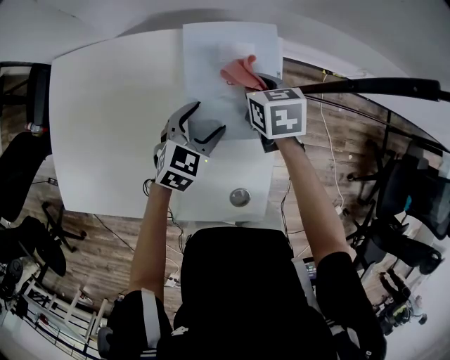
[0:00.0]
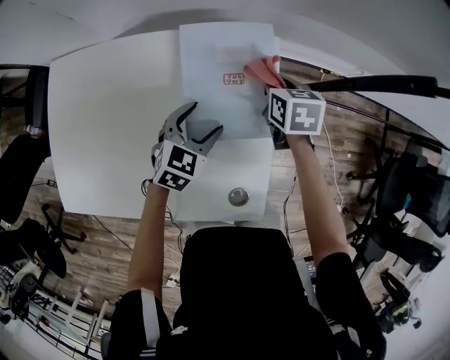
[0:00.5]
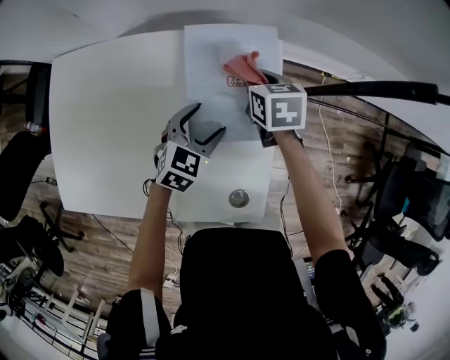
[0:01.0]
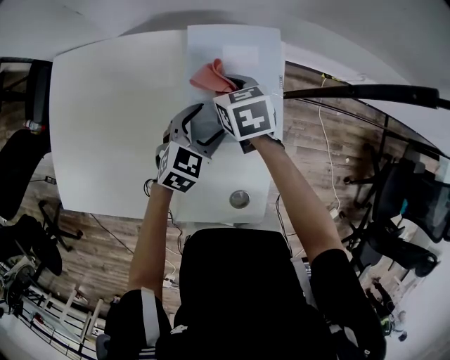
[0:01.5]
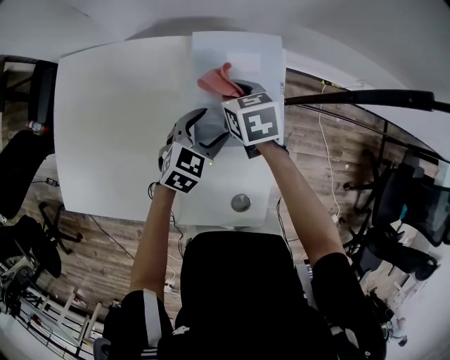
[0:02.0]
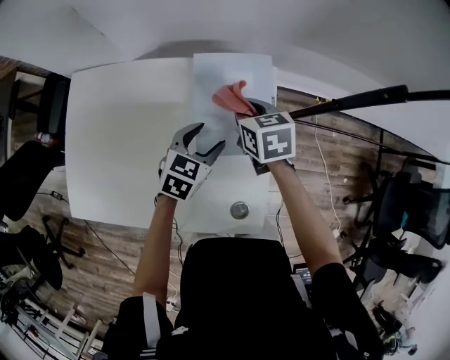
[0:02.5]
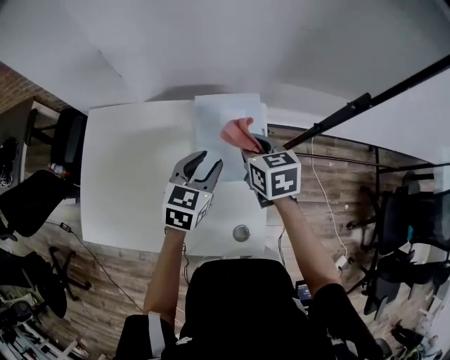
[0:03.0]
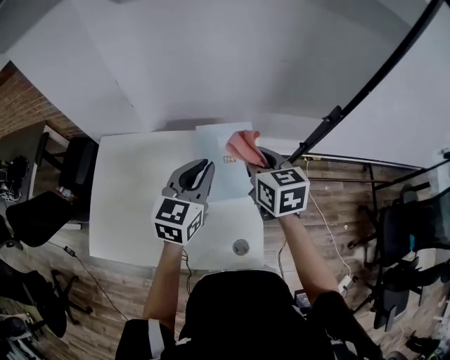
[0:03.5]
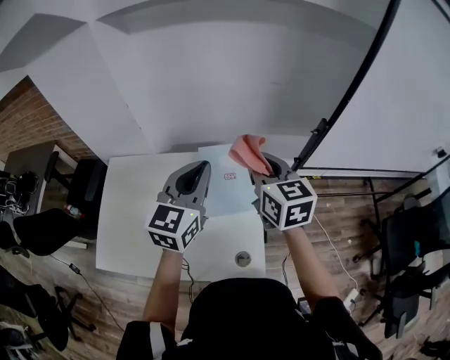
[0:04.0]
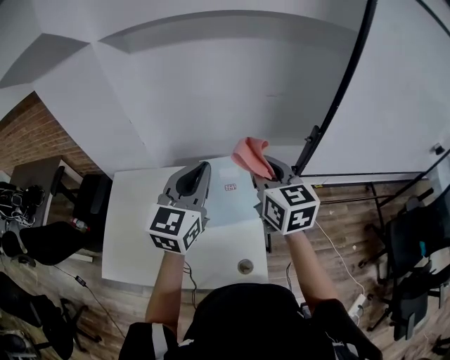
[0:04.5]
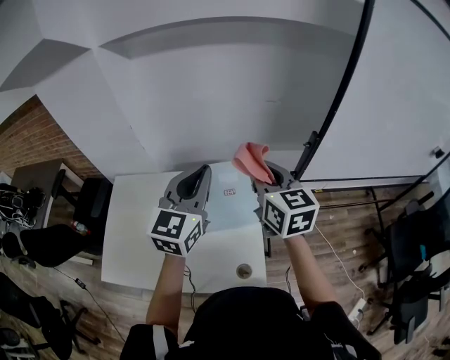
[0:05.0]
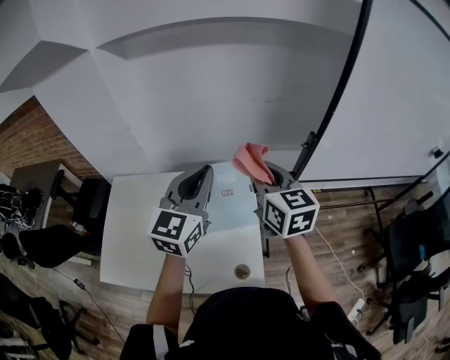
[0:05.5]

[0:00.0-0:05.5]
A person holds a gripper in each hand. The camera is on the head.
0:00.0 to 0:02.0: The right gripper shifts some 5 cm to the left.
0:02.0 to 0:03.5: Both grippers travel together upward, some 25 cm. The left gripper changes its angle by about 30 degrees, and closes. The right gripper changes its angle by about 30 degrees.
0:03.5 to 0:05.5: Both grippers move upward, about 15 cm.

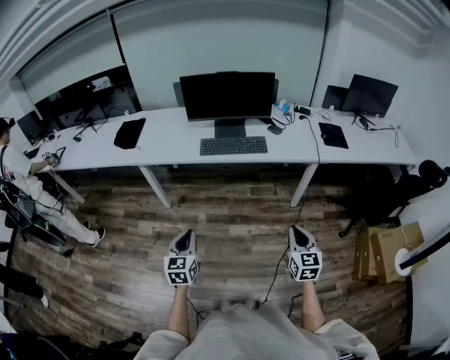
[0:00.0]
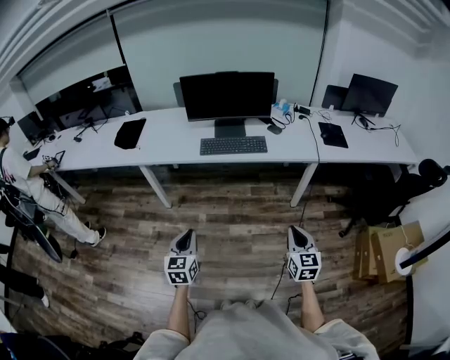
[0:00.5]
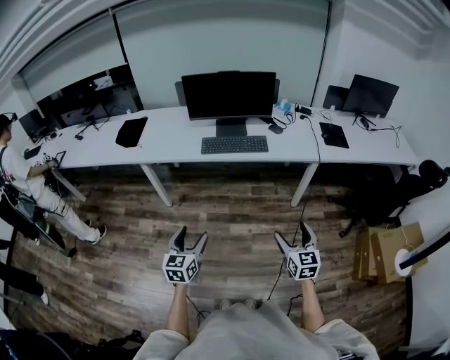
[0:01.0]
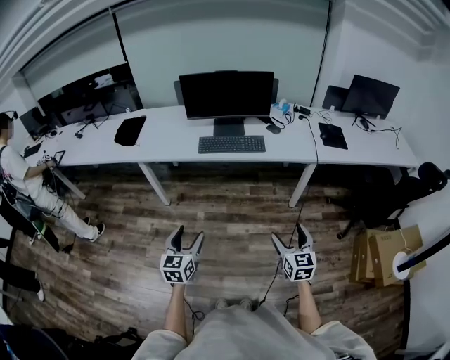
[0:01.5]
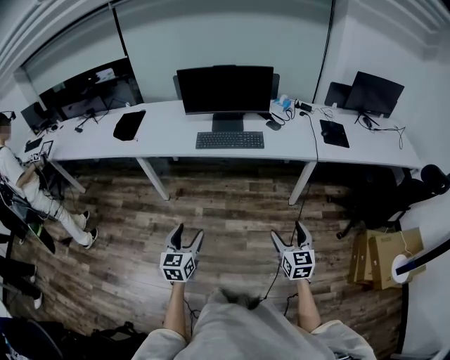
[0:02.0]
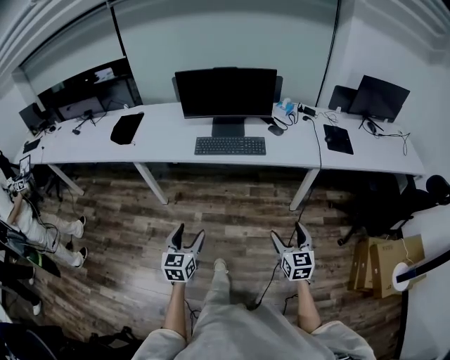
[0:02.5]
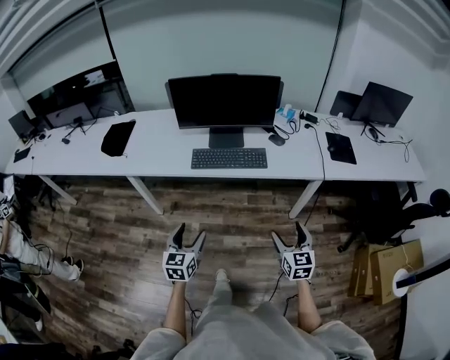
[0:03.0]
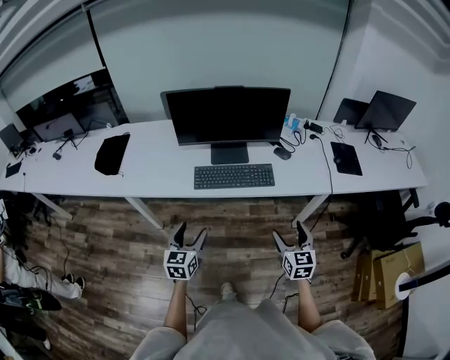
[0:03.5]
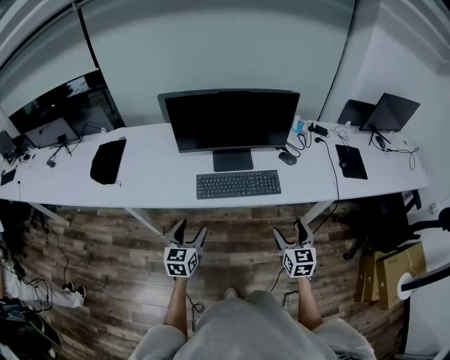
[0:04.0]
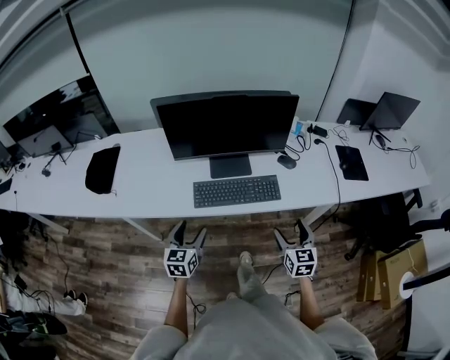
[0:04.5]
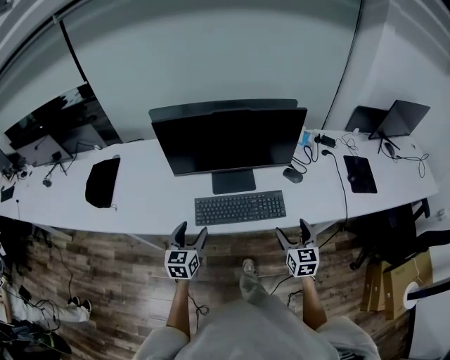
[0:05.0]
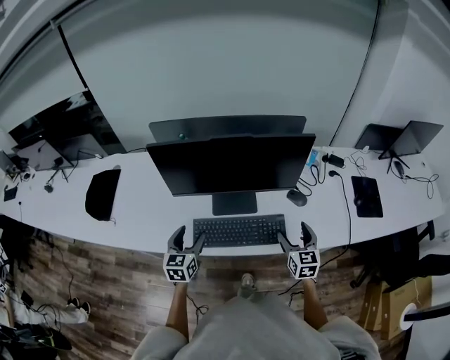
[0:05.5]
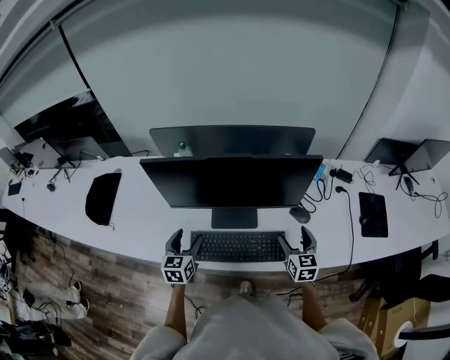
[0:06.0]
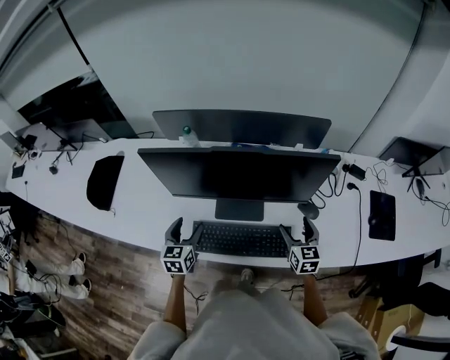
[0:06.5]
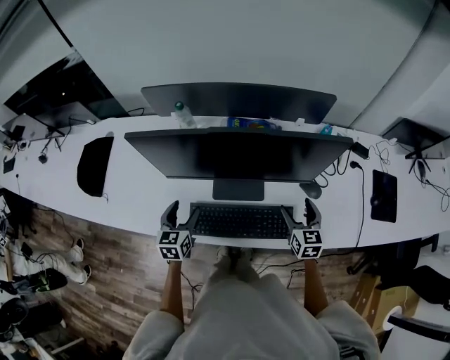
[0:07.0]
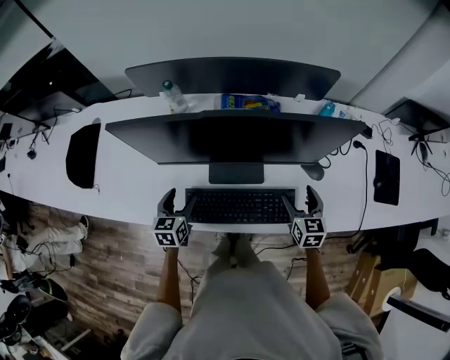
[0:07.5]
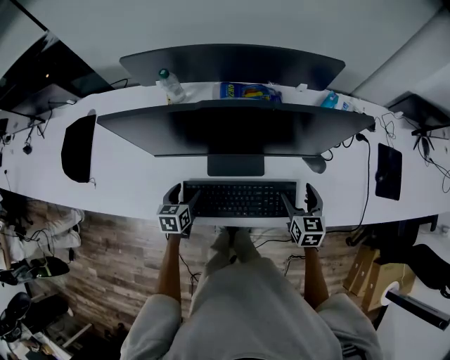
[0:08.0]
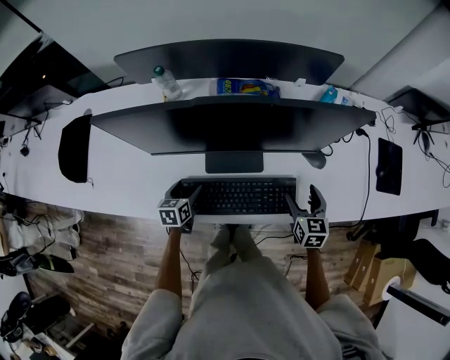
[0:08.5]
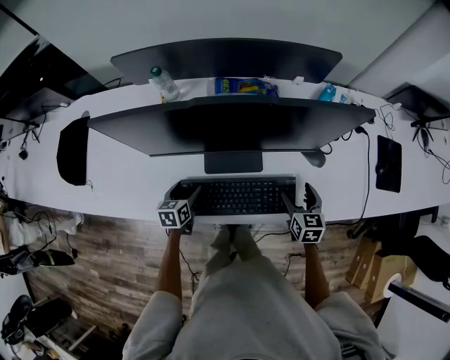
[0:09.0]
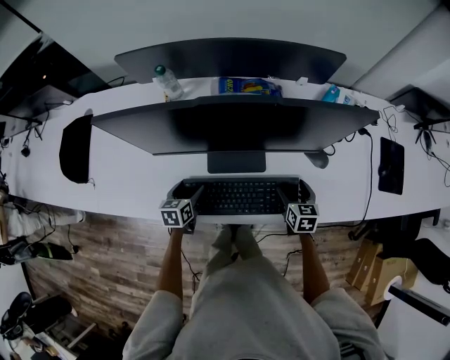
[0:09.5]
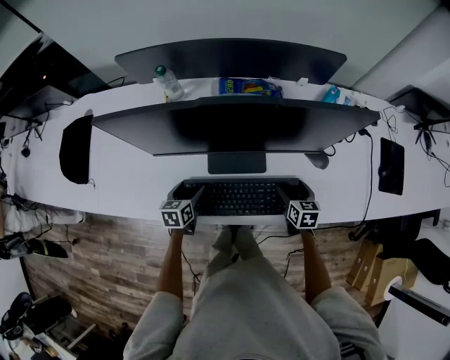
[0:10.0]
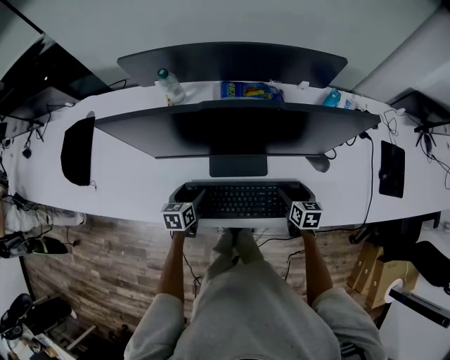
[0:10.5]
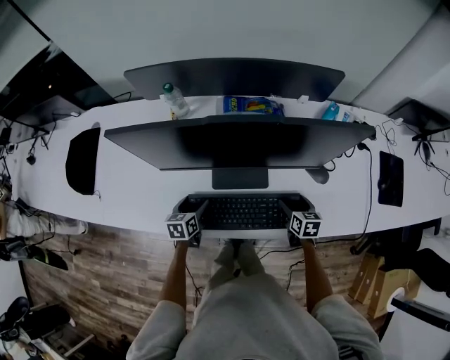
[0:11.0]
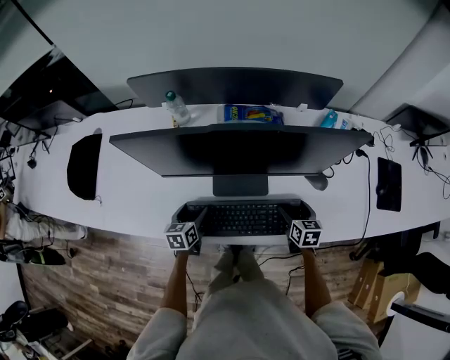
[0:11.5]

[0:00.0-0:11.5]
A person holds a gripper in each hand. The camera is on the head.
0:00.0 to 0:02.0: The right gripper opens its fingers, while the left gripper goes roughly 5 cm to the right, and opens.
0:02.0 to 0:04.0: Both grippers move forward, some 40 cm.
0:04.0 to 0:06.0: Both grippers travel together forward, about 30 cm.
0:06.0 to 0:07.5: The two grippers go approximately 10 cm downward.
0:07.5 to 0:09.5: Both grippers move downward, about 10 cm.
0:09.5 to 0:11.5: There are only small adjustments of the grippers.

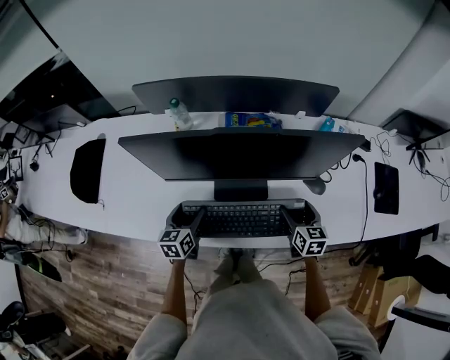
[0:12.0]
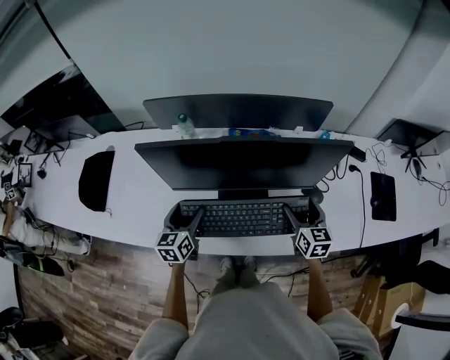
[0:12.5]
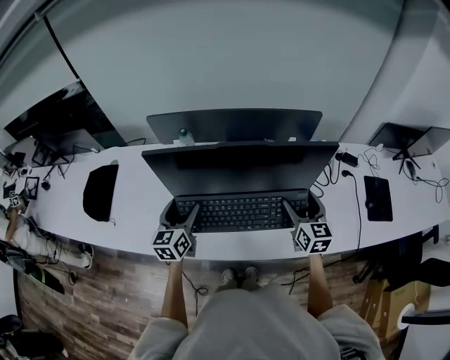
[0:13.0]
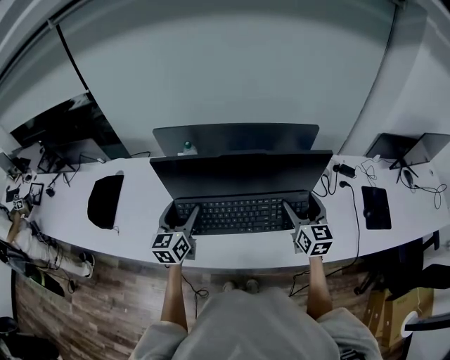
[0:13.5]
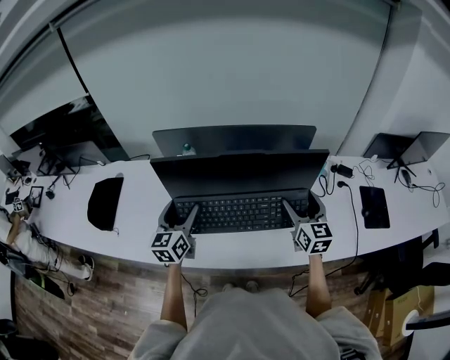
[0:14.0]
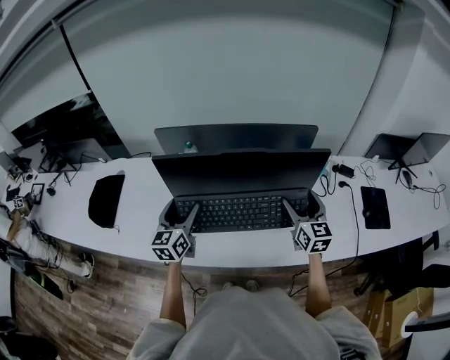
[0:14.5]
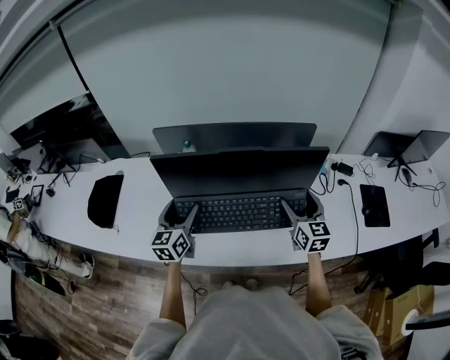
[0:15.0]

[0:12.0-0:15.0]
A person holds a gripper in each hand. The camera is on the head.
0:12.0 to 0:13.5: Both grippers move upward, approximately 20 cm. The left gripper changes its angle by some 20 degrees; the right gripper rotates some 30 degrees.
0:13.5 to 0:15.0: Both grippers stay put.

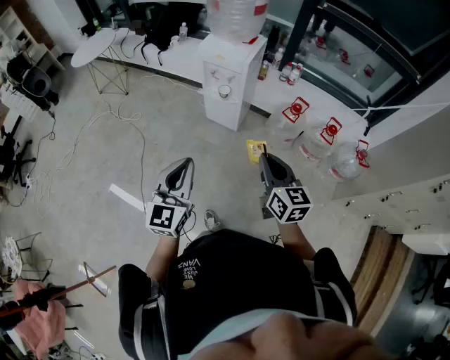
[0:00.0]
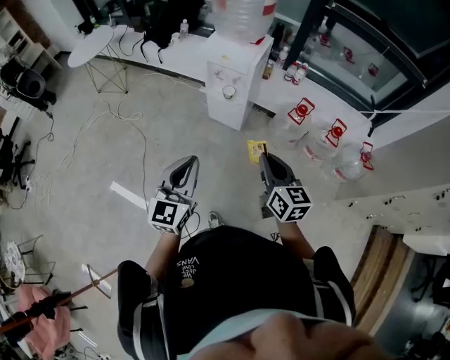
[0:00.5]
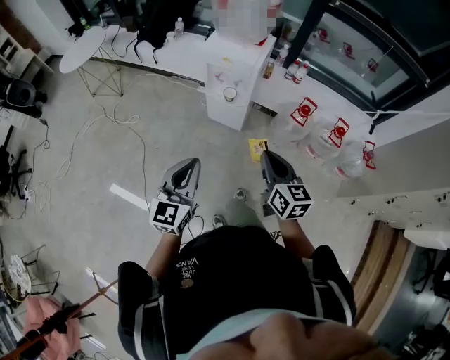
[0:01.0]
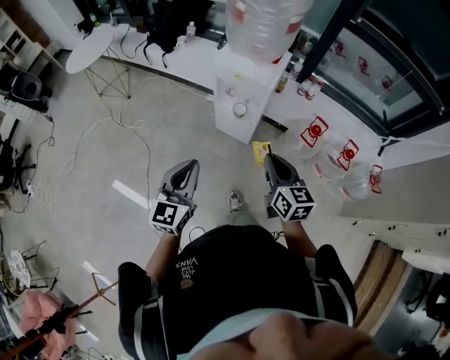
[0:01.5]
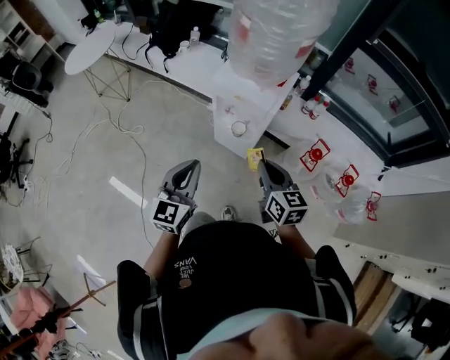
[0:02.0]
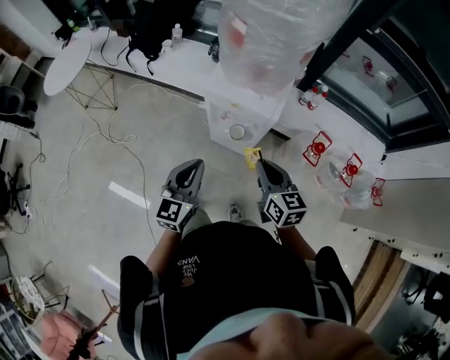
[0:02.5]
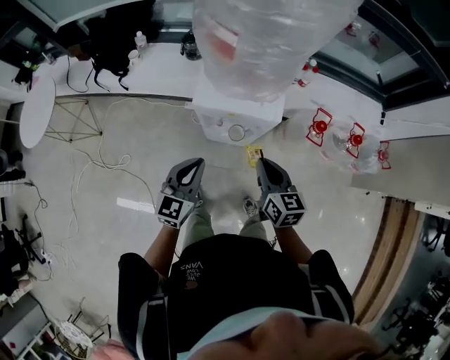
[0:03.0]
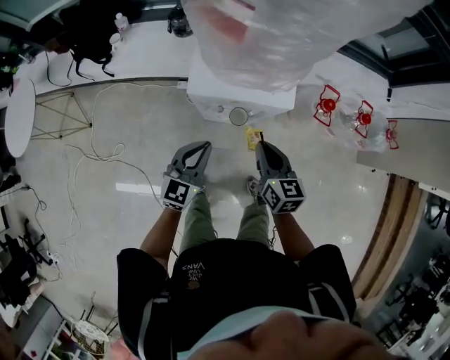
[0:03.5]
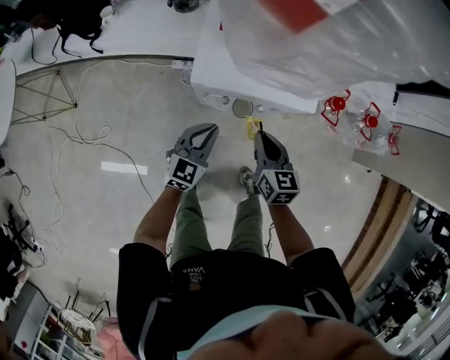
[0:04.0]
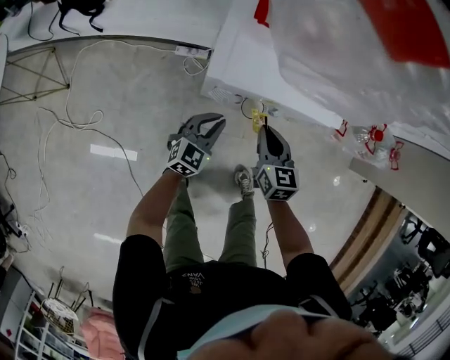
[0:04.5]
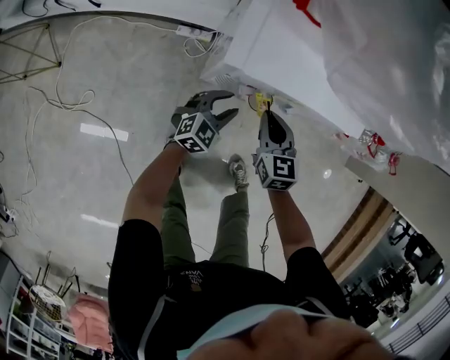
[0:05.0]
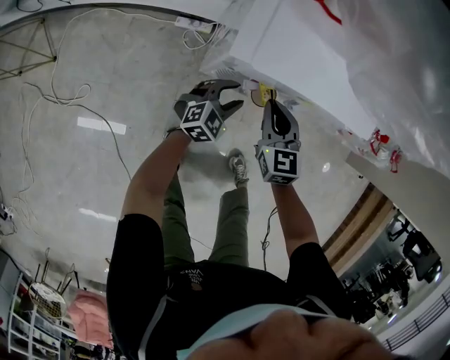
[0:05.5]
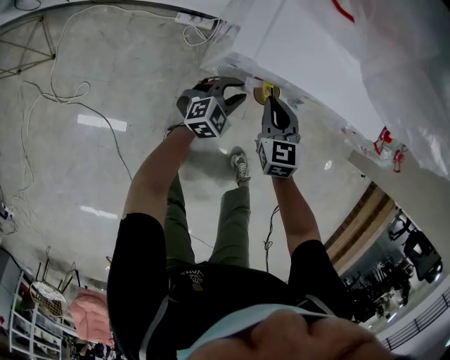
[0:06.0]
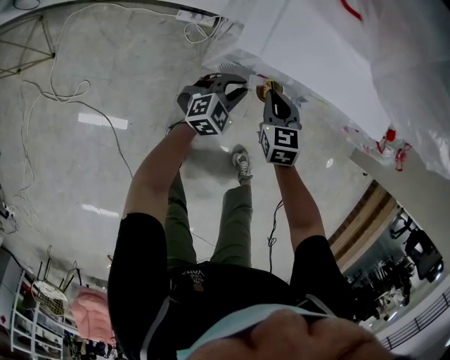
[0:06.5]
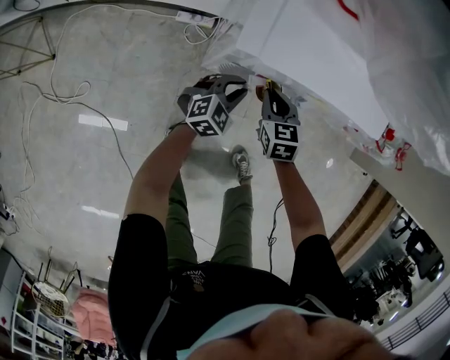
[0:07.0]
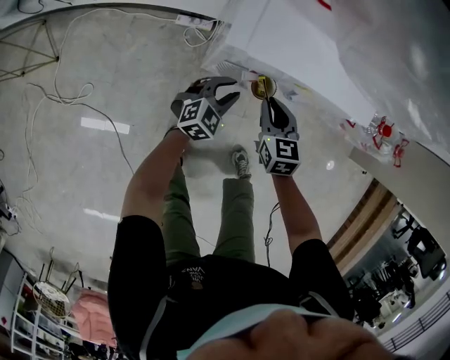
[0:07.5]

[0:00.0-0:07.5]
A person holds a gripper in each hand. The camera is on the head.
0:00.0 to 0:02.0: Both grippers are carried forward, about 40 cm.
0:02.0 to 0:04.0: The left gripper changes place by roughly 50 cm, and turns by roughly 40 degrees; the right gripper changes place by roughly 40 cm, and turns by about 30 degrees.
0:04.0 to 0:05.5: The left gripper moves downward, some 20 cm, swivels some 20 degrees, and opens. Meanwhile the right gripper moves downward, to the left and forward, approximately 15 cm, and changes its angle by roughly 20 degrees.
0:05.5 to 0:07.5: The right gripper goes downward and returns, about 10 cm each way.
